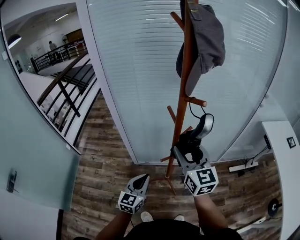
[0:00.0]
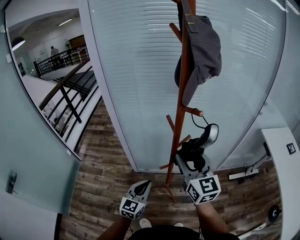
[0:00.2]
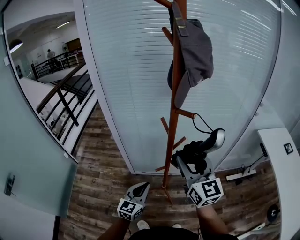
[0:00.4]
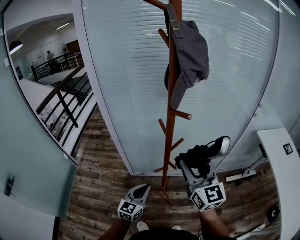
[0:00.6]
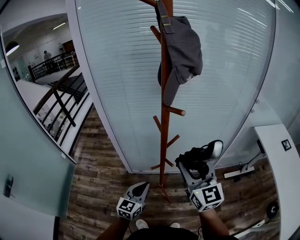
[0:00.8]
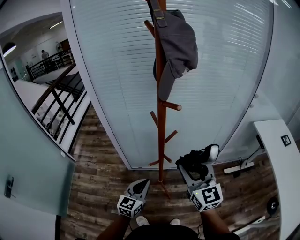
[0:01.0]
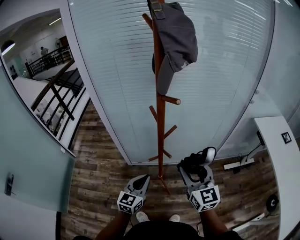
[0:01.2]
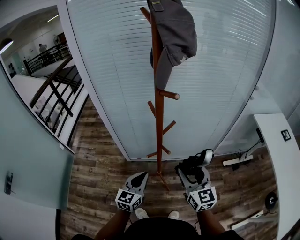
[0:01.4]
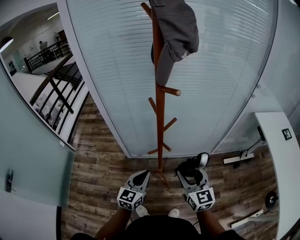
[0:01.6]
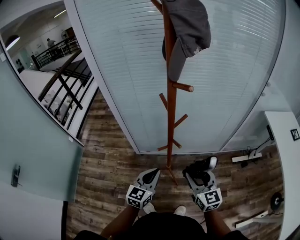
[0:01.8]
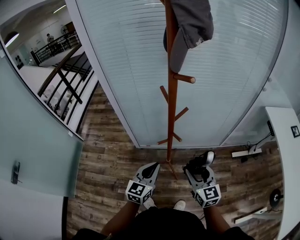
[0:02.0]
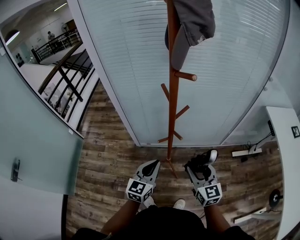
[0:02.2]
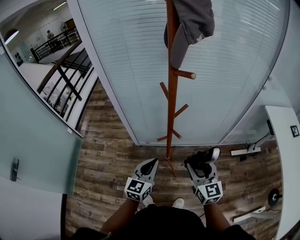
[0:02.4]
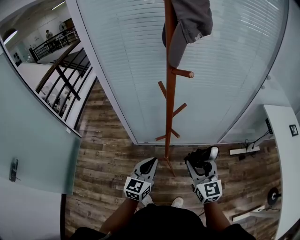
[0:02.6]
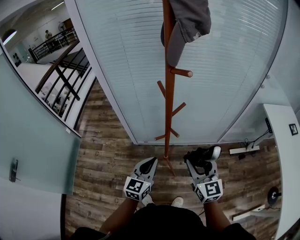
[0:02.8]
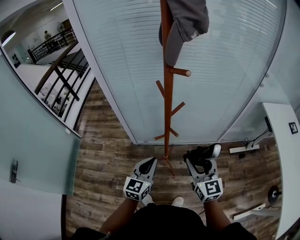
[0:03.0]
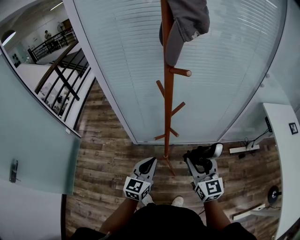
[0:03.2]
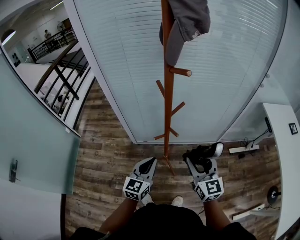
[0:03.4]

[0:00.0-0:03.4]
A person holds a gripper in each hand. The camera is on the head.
0:00.0 to 0:01.6: The right gripper heads downward, to the right and backward, covering some 20 cm. The left gripper heads to the right, covering about 5 cm.
0:01.6 to 0:03.4: There are only small adjustments of the grippers.

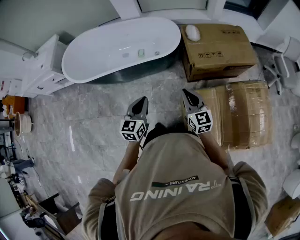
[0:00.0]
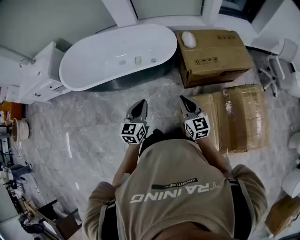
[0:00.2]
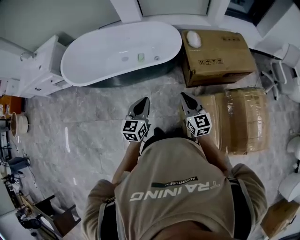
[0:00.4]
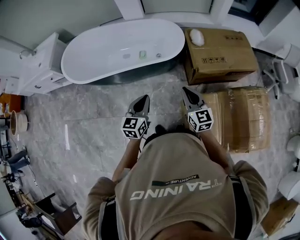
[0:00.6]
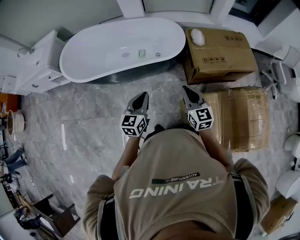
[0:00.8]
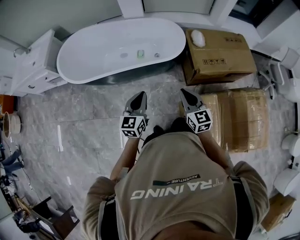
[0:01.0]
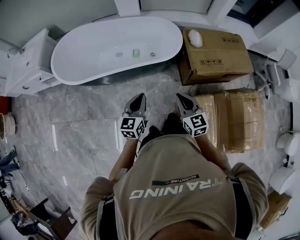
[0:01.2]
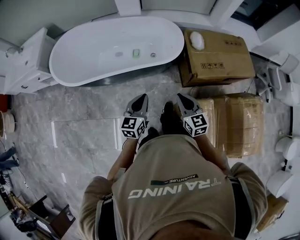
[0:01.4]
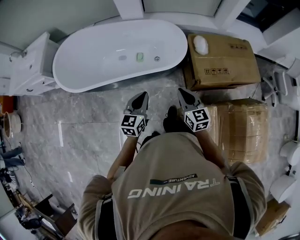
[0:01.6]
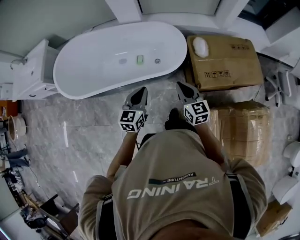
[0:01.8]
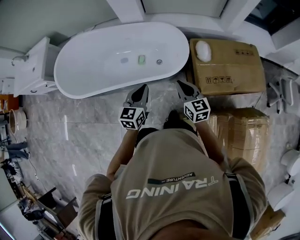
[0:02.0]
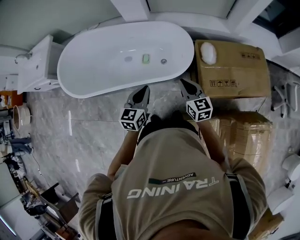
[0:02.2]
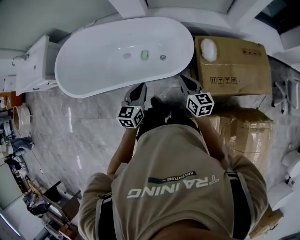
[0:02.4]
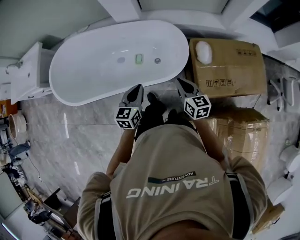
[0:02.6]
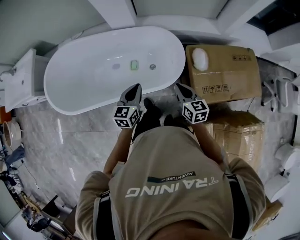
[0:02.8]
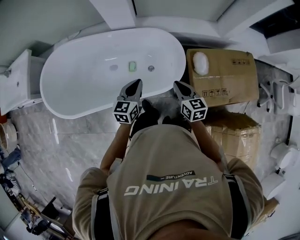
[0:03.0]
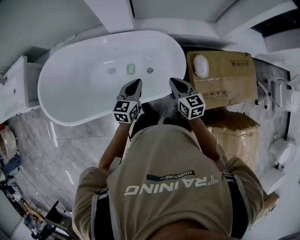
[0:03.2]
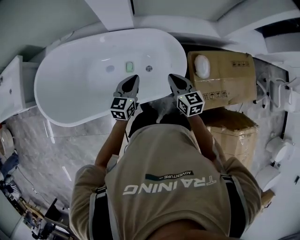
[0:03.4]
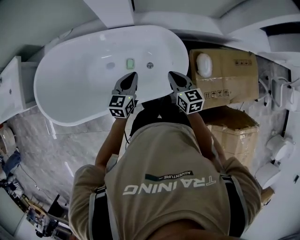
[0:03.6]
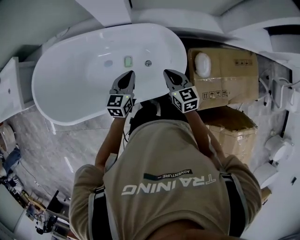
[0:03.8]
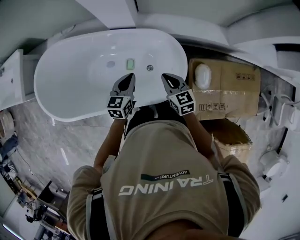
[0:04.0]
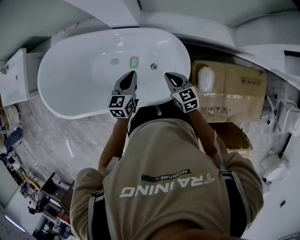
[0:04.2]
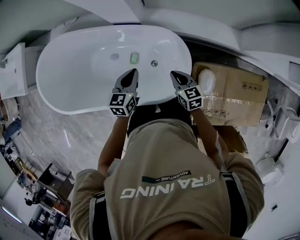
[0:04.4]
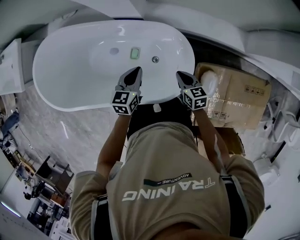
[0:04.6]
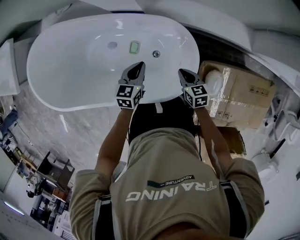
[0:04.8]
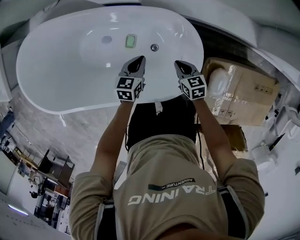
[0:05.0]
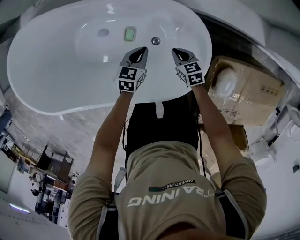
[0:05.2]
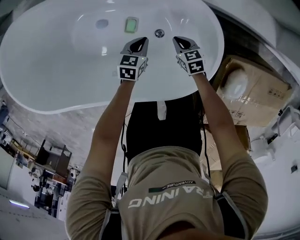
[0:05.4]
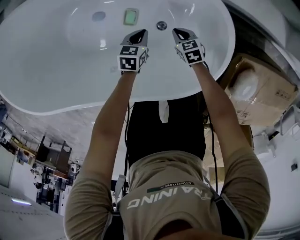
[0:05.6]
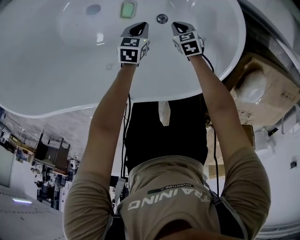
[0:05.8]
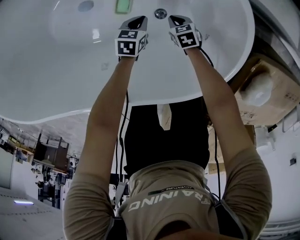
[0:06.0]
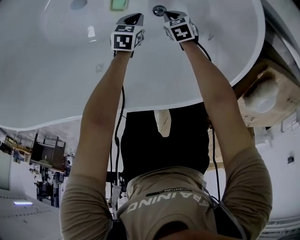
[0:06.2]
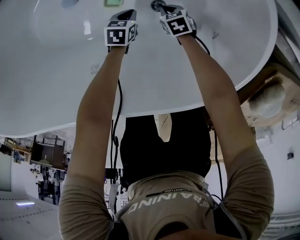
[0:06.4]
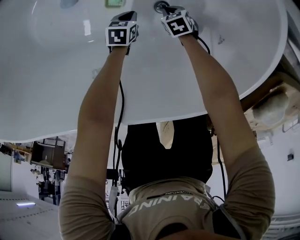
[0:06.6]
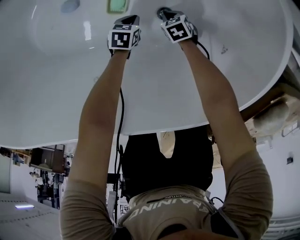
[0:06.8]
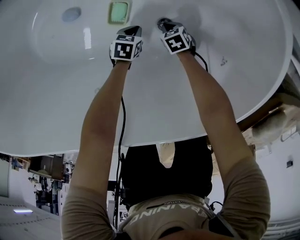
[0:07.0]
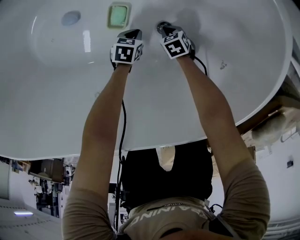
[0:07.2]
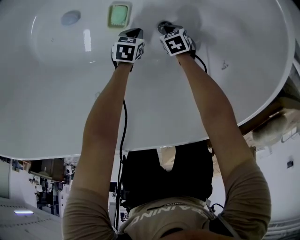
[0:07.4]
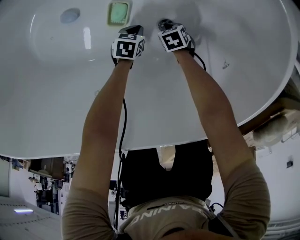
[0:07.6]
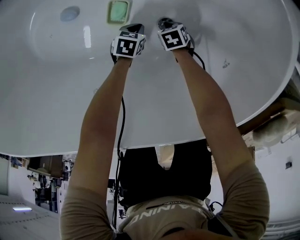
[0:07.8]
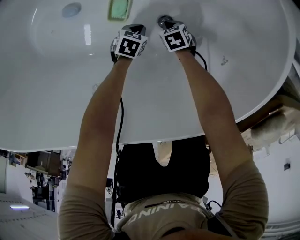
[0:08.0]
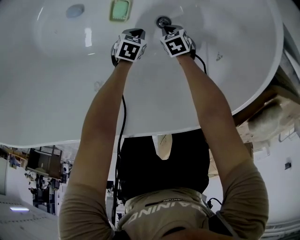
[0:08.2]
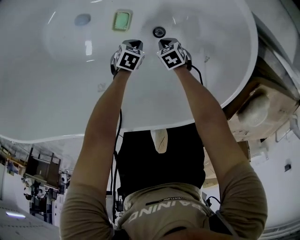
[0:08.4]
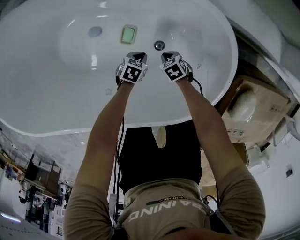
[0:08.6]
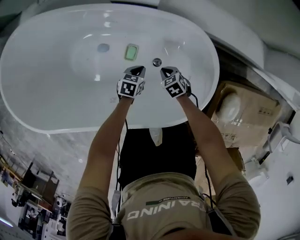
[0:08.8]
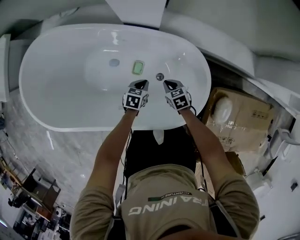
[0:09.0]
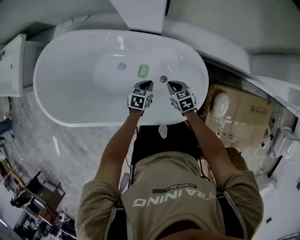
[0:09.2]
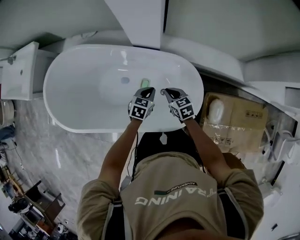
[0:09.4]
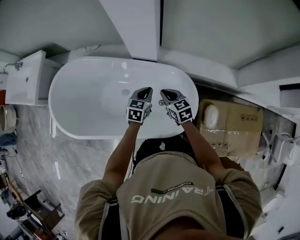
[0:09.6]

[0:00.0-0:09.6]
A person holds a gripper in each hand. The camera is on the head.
0:00.0 to 0:01.6: The left gripper heads forward, covering roughly 15 cm. Meanwhile the right gripper is displaced forward and to the left by some 20 cm.
0:01.6 to 0:03.2: The grippers both shift forward by approximately 35 cm.
0:03.2 to 0:04.8: The right gripper is displaced downward and forward by about 30 cm, and rotates some 30 degrees. The left gripper travels forward and downward by approximately 25 cm, and swivels some 20 degrees.
0:04.8 to 0:06.4: The two grippers go some 50 cm downward. The right gripper turns by roughly 30 degrees. Meanwhile the left gripper rotates about 30 degrees.
0:06.4 to 0:08.0: The grippers both shift downward by about 5 cm.
0:08.0 to 0:09.6: The grippers both shift upward by roughly 70 cm. The right gripper angles its fingers upward, by approximately 40 degrees, while the left gripper changes its angle by approximately 40 degrees.

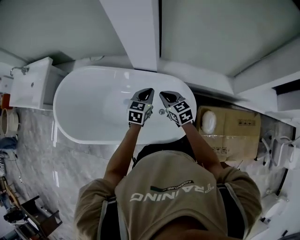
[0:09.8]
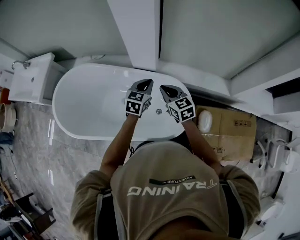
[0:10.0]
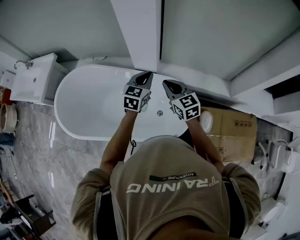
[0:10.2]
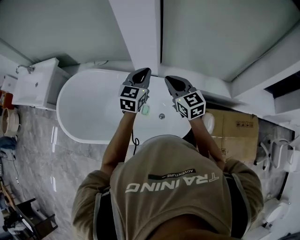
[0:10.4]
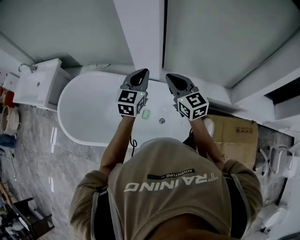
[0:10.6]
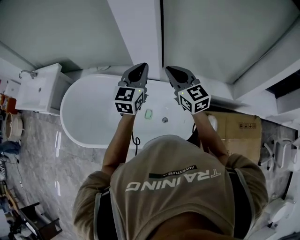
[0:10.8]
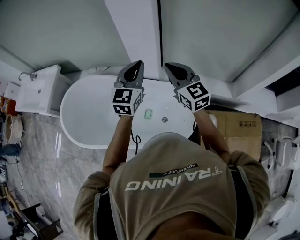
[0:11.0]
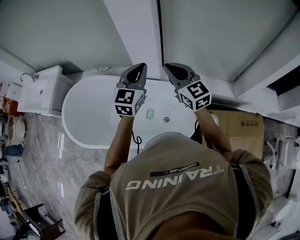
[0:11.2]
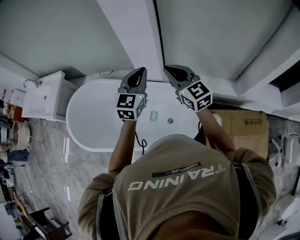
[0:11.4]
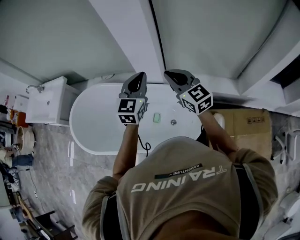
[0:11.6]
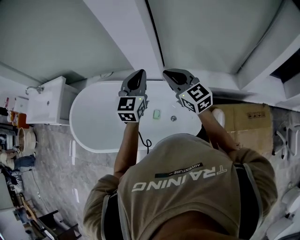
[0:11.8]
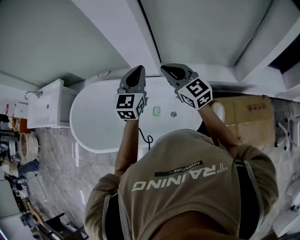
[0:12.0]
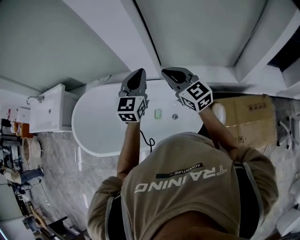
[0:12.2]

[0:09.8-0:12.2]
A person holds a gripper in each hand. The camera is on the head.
0:09.8 to 0:11.0: Both grippers move upward, approximately 25 cm. The right gripper rotates approximately 30 degrees, while the left gripper swivels roughly 30 degrees.
0:11.0 to 0:12.2: The left gripper moves approximately 5 cm.

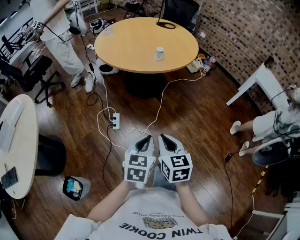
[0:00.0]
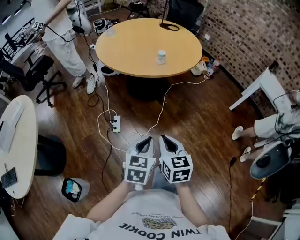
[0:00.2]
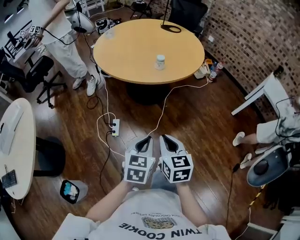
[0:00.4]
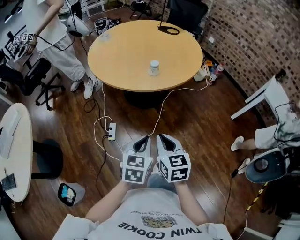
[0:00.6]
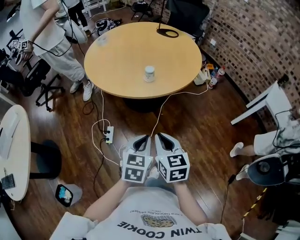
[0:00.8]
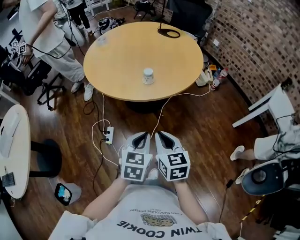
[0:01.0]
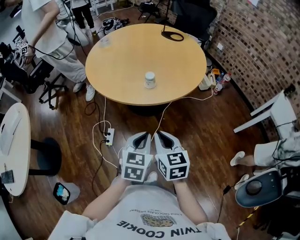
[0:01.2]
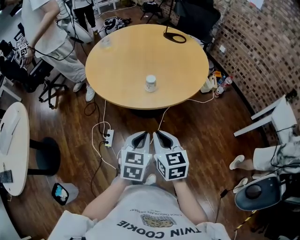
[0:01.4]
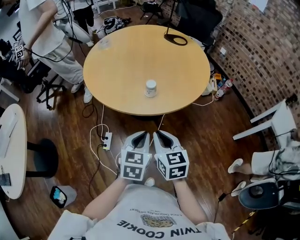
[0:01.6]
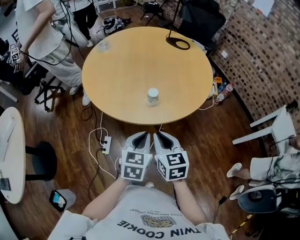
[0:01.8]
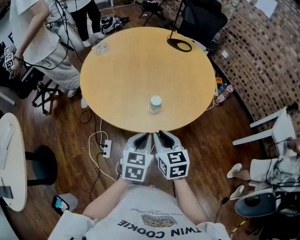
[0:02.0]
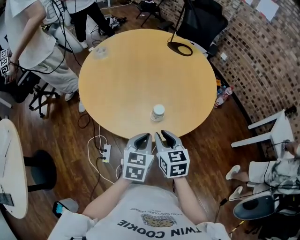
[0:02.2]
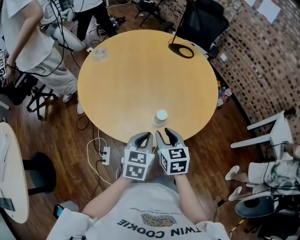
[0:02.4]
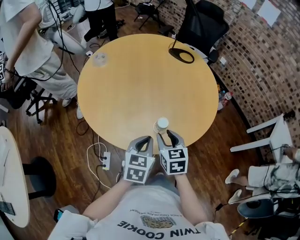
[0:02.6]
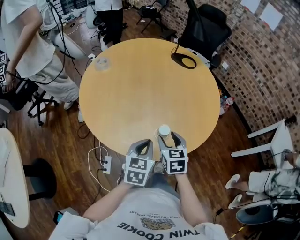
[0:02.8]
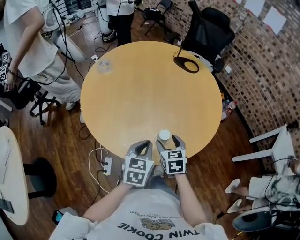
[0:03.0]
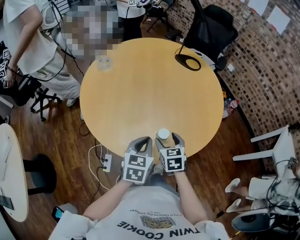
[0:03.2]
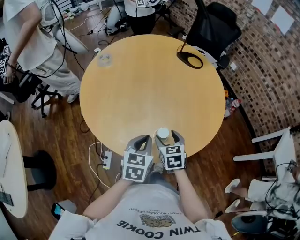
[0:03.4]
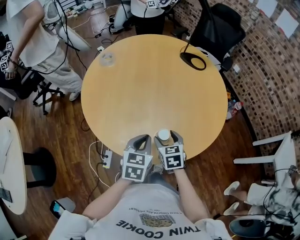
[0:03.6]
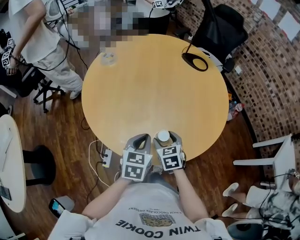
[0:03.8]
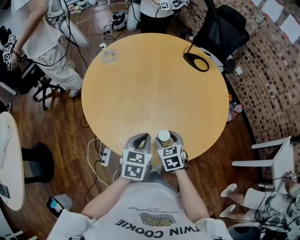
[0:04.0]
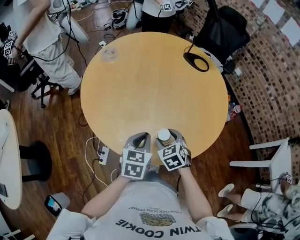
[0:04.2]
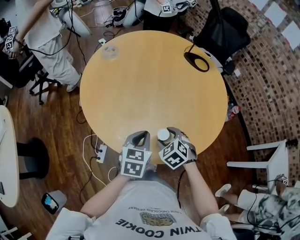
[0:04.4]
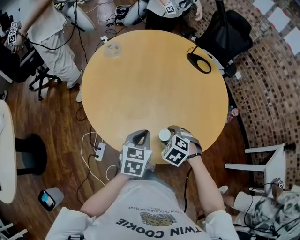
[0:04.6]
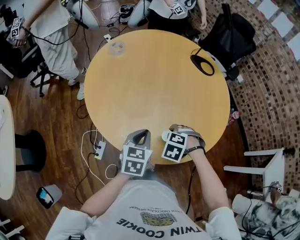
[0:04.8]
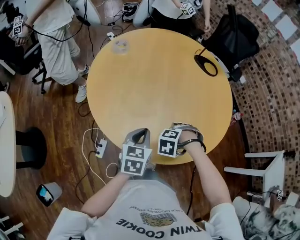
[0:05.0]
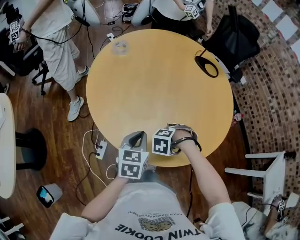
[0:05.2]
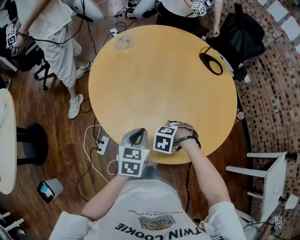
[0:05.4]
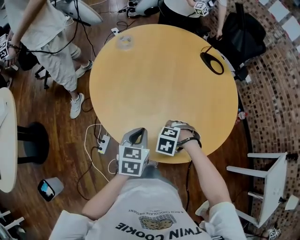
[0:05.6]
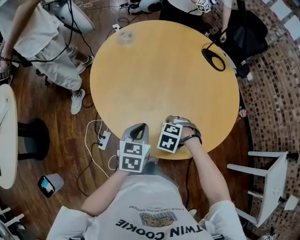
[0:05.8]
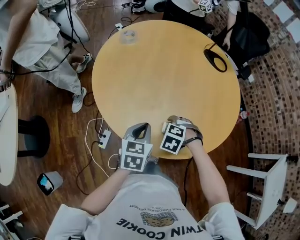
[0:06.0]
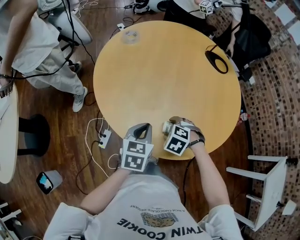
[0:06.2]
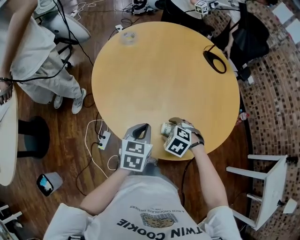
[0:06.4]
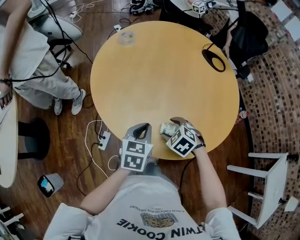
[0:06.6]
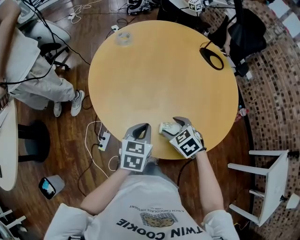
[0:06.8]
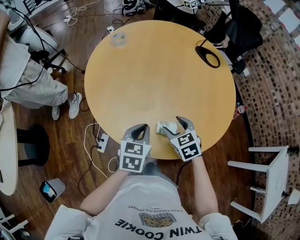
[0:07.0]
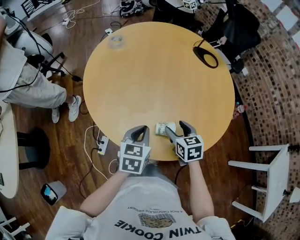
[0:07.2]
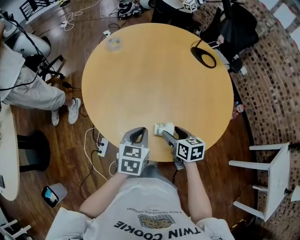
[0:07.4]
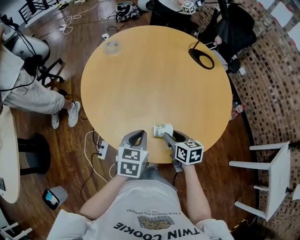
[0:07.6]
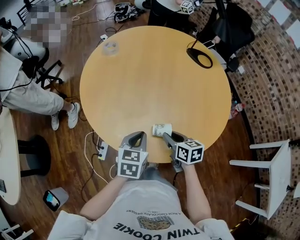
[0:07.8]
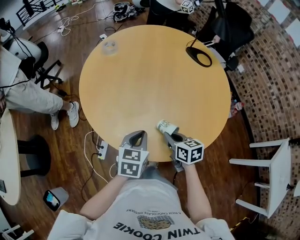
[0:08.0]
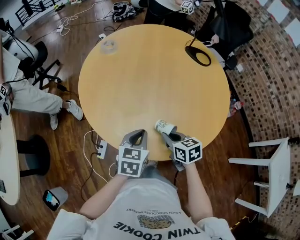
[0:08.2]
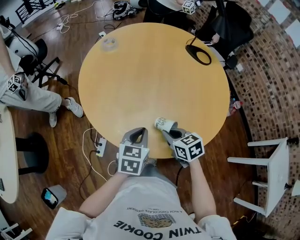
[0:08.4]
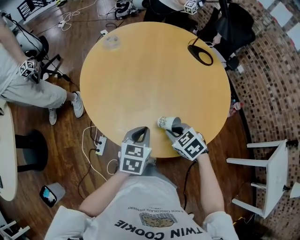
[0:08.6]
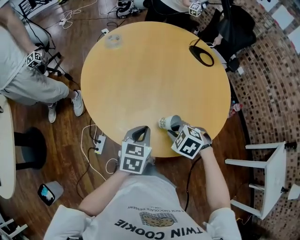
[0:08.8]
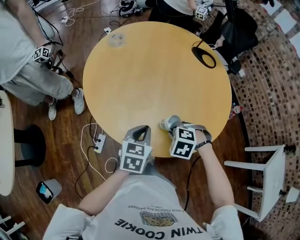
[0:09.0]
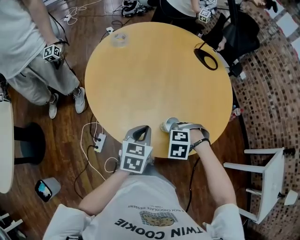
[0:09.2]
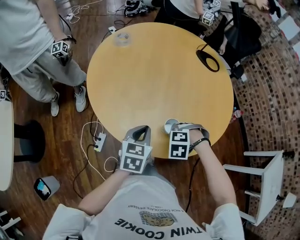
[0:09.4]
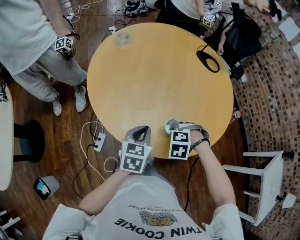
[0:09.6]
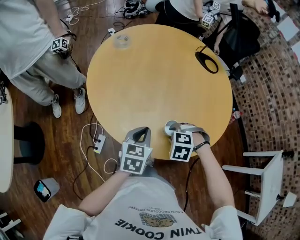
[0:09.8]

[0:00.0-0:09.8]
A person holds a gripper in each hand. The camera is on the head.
0:00.0 to 0:01.4: Both grippers travel together forward and to the right, approximately 35 cm.
0:01.4 to 0:02.8: The two grippers go approximately 30 cm forward. The right gripper opens.
0:02.8 to 0:04.2: The left gripper shifts some 5 cm forward, while the right gripper heads downward, covering about 5 cm, and turns by roughly 30 degrees.
0:04.2 to 0:05.6: The left gripper changes place by approximately 5 cm; the right gripper travels downward by roughly 5 cm, and angles its fingers downward, by about 40 degrees.
0:05.6 to 0:07.0: The right gripper goes roughly 5 cm upward, and points its fingers about 40 degrees further upward.
0:07.0 to 0:08.4: The right gripper swivels about 20 degrees, and closes.
0:08.4 to 0:09.8: The right gripper rolls counterclockwise, seen from behind, by roughly 60 degrees, and opens its fingers.
